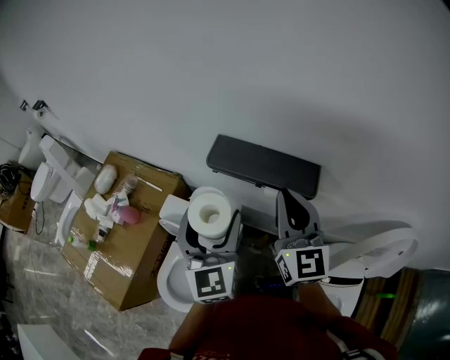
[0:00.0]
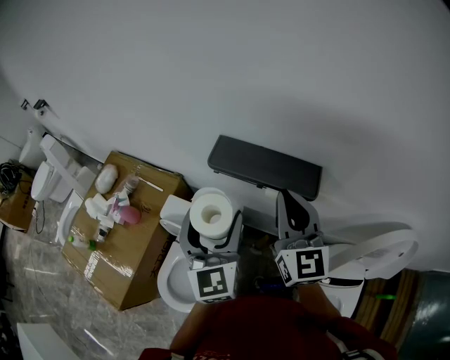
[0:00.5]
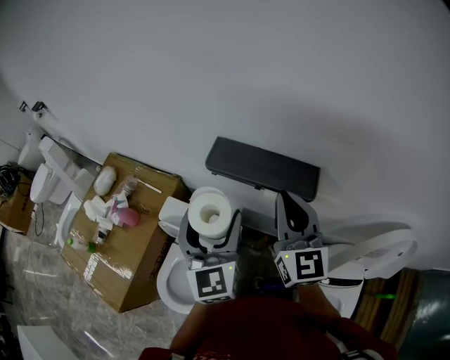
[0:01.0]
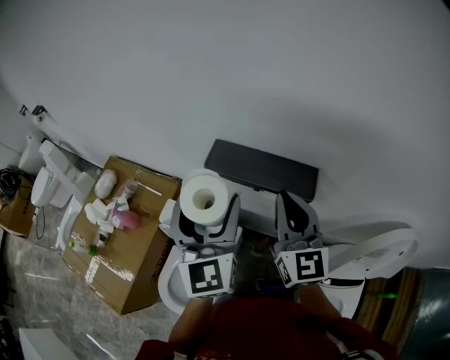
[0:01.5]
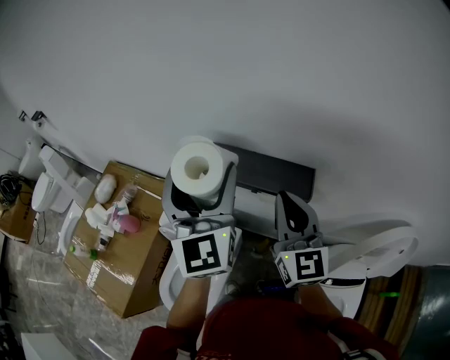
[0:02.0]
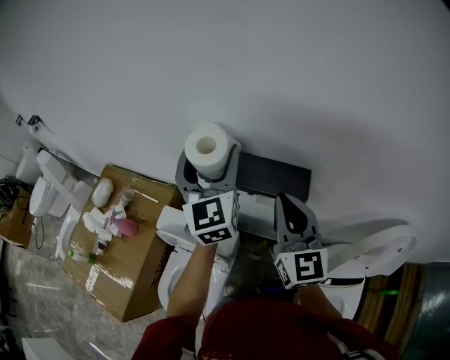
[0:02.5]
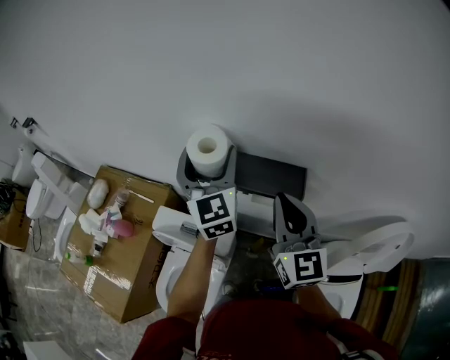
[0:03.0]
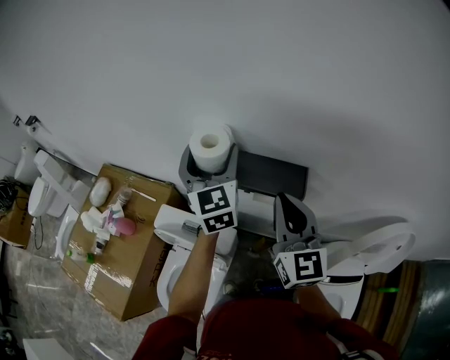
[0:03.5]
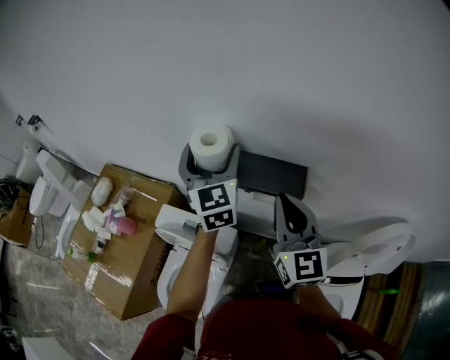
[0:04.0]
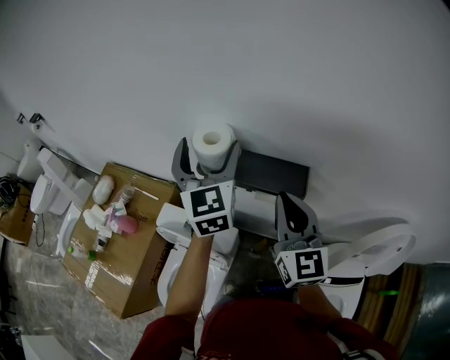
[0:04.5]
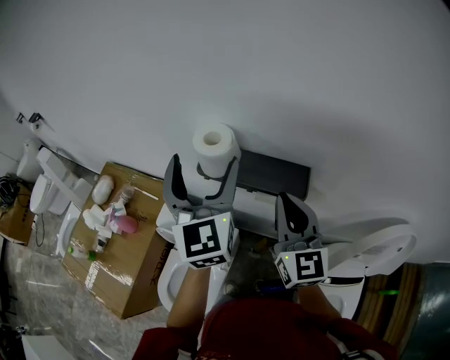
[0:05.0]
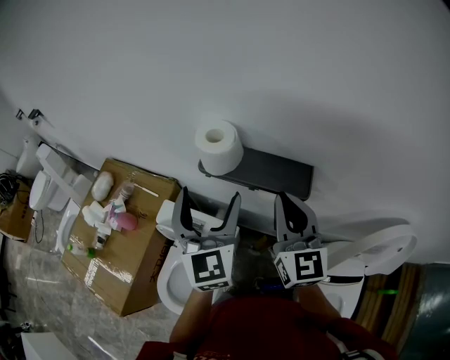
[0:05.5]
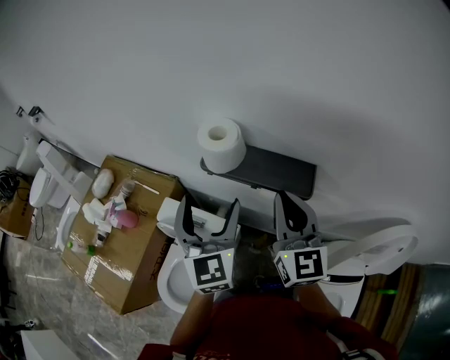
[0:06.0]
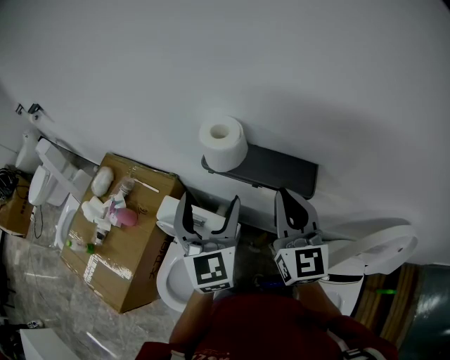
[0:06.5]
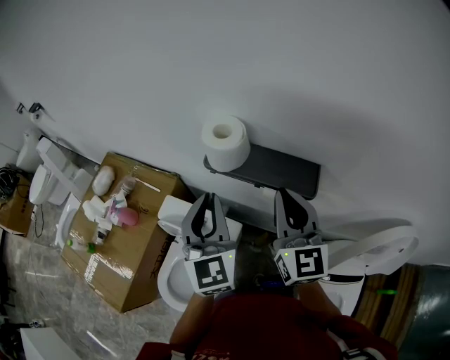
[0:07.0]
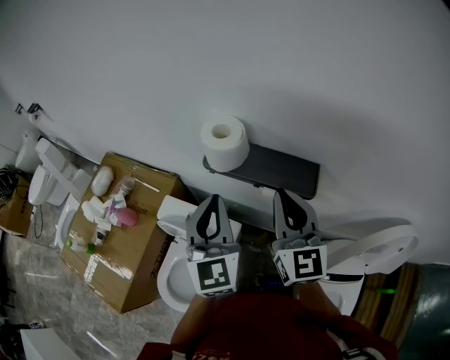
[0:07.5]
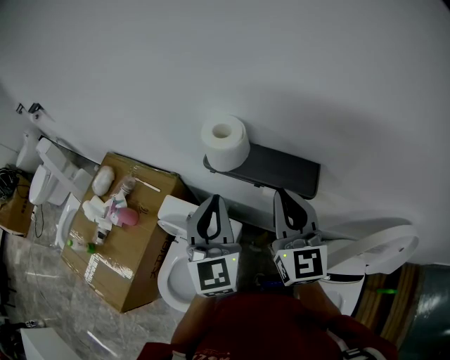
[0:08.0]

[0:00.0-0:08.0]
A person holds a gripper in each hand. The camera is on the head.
0:00.0 to 0:02.0: The left gripper goes approximately 15 cm upward and forward.
0:02.0 to 0:04.0: The left gripper goes roughly 10 cm forward and downward.
0:04.0 to 0:06.0: The left gripper travels backward by some 10 cm.
0:06.0 to 0:08.0: The left gripper closes up.

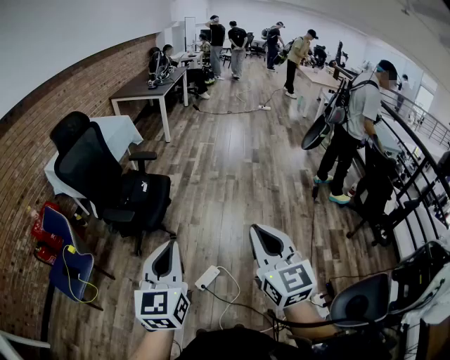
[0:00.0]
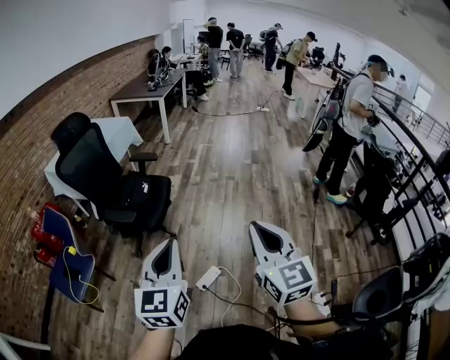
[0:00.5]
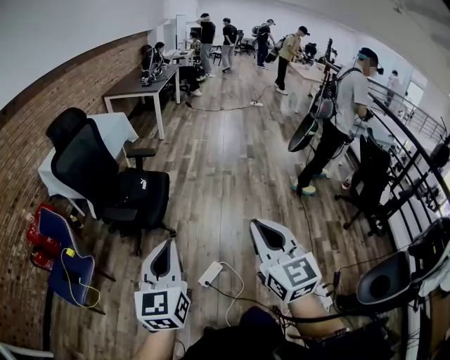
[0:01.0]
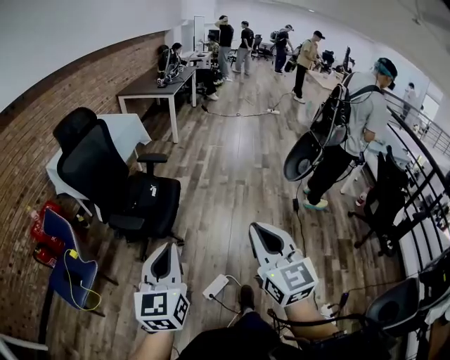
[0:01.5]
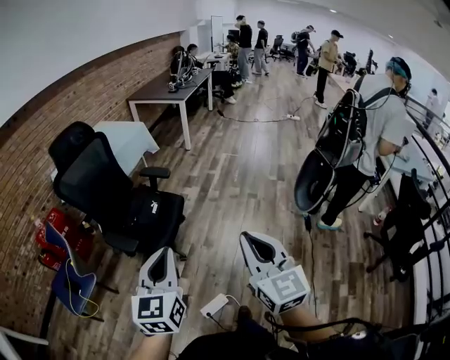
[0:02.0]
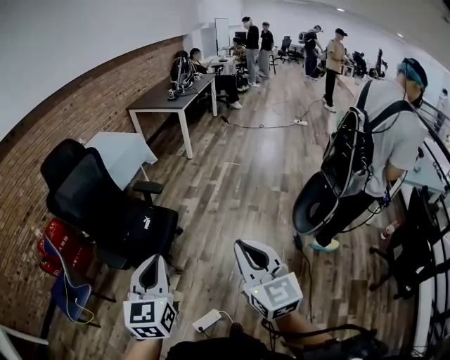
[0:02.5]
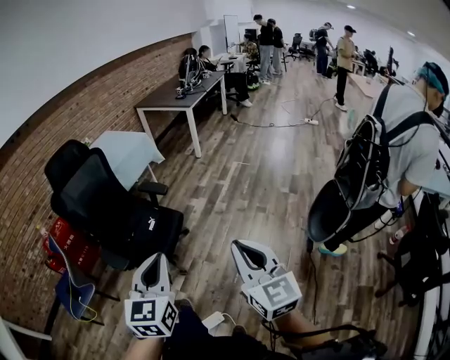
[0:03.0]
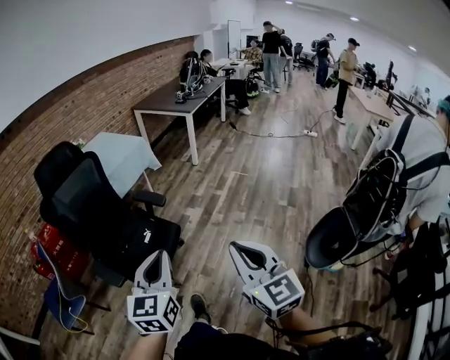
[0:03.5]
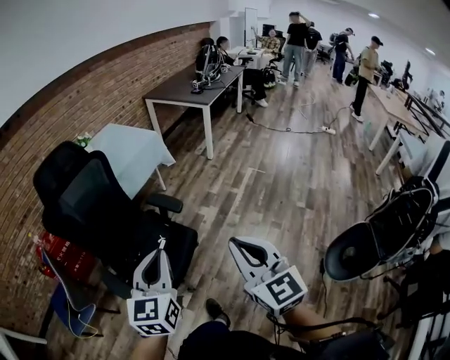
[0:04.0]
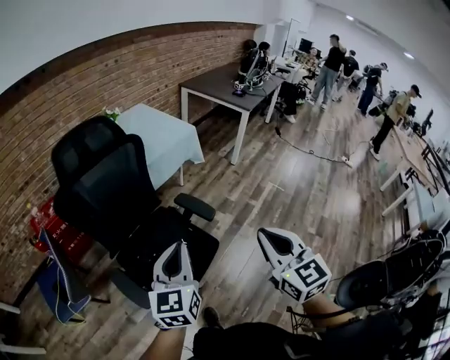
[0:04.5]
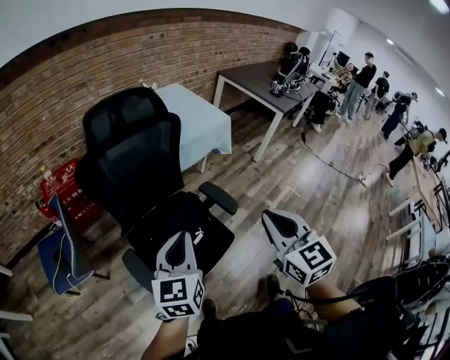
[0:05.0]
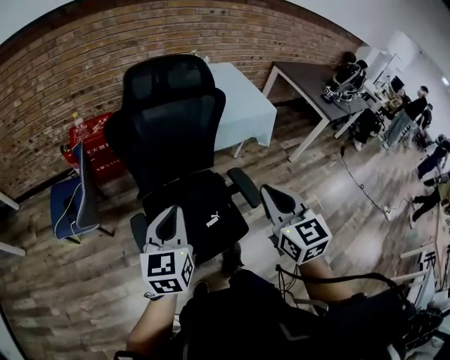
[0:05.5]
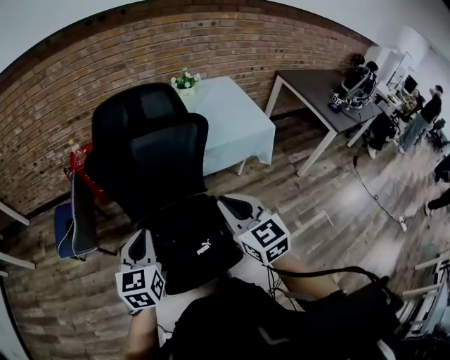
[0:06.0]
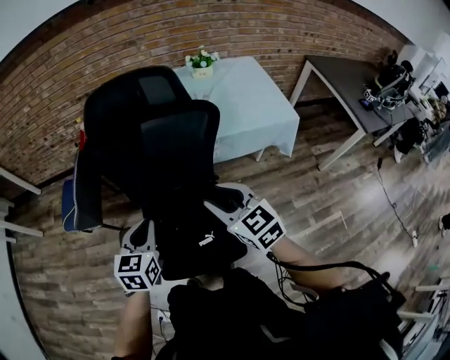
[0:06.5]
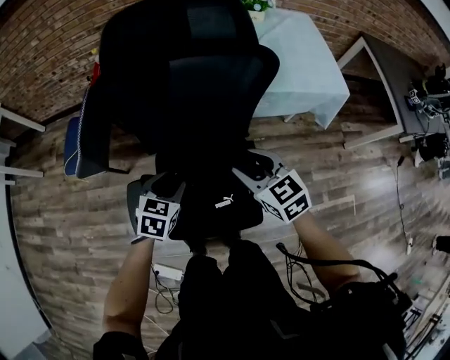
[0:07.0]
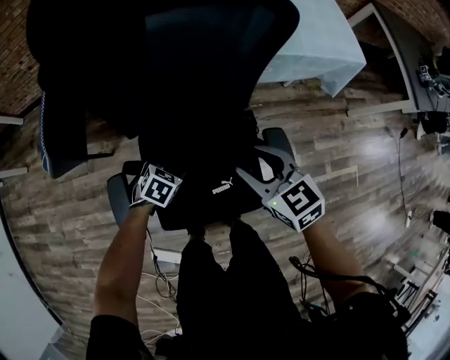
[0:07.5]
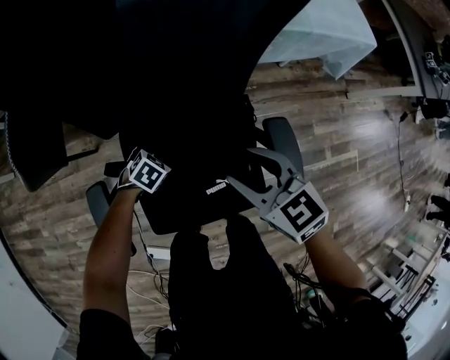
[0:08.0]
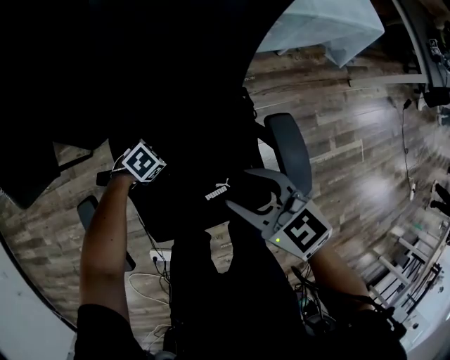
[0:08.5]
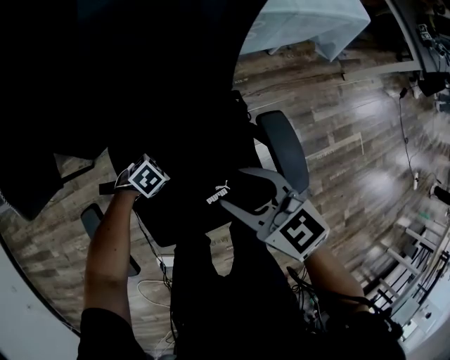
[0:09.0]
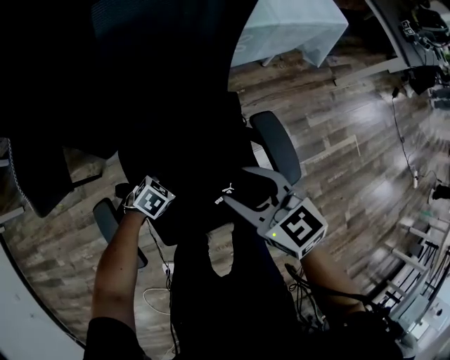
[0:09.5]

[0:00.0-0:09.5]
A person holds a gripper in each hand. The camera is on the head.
0:00.0 to 0:02.0: The two grippers go some 20 cm forward.
0:02.0 to 0:04.0: Both grippers travel together forward, about 35 cm.
0:04.0 to 0:05.5: The right gripper moves about 35 cm, and turns by approximately 30 degrees. The left gripper moves roughly 30 cm, and swivels approximately 40 degrees.
0:05.5 to 0:07.5: The left gripper travels downward by approximately 40 cm, tips its fingers downward by roughly 50 degrees, and opens up. Meanwhile the right gripper is displaced downward and forward by roughly 30 cm, changes its angle by some 40 degrees, and opens up.
0:07.5 to 0:09.5: The left gripper goes roughly 10 cm downward, turns by about 20 degrees, and closes up.

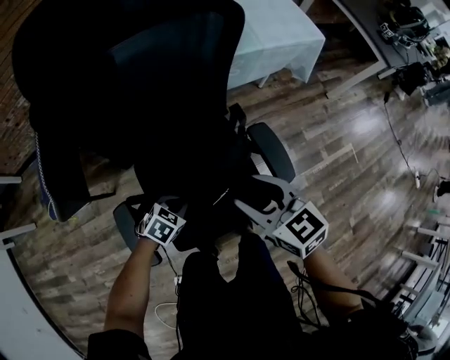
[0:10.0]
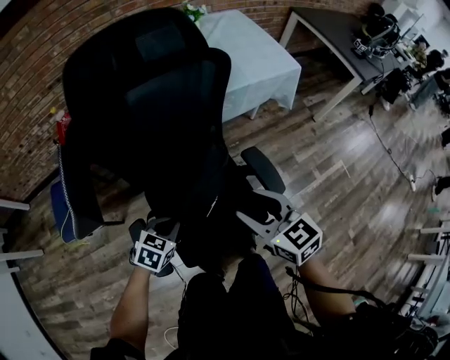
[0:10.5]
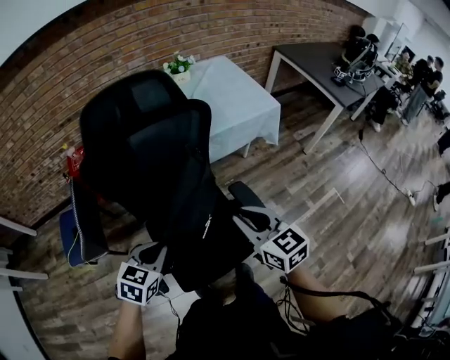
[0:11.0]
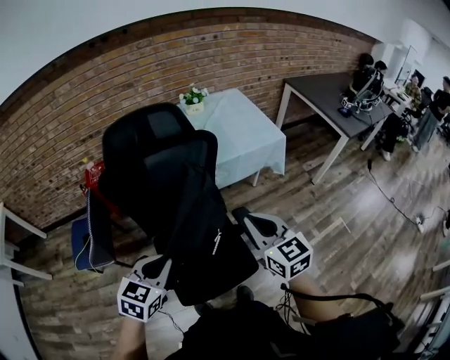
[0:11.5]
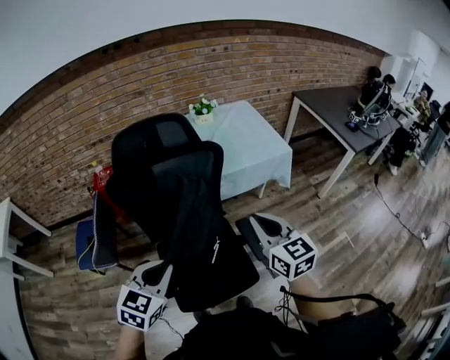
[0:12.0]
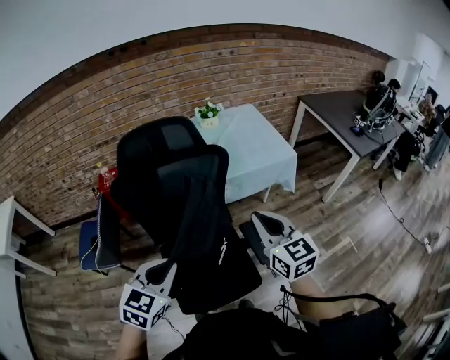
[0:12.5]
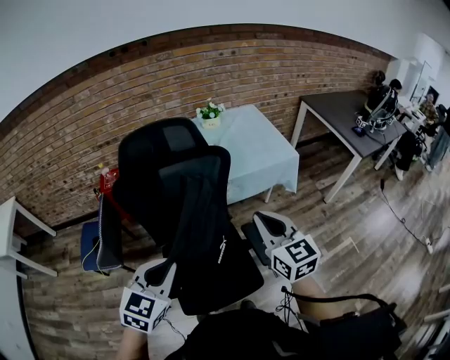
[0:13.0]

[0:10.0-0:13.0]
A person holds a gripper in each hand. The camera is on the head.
0:10.0 to 0:11.5: The right gripper moves upward, approximately 20 cm, turns by some 20 degrees, and closes up; the left gripper travels upward by about 35 cm, and turns by some 30 degrees.
0:11.5 to 0:13.0: The left gripper moves upward, about 5 cm, while the right gripper shifts by some 5 cm.

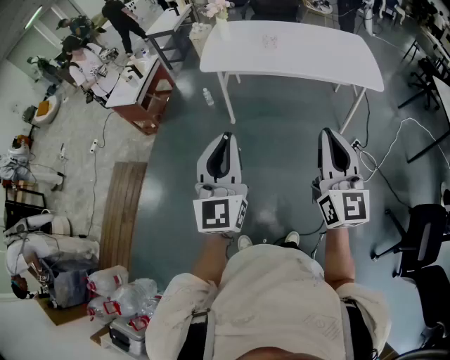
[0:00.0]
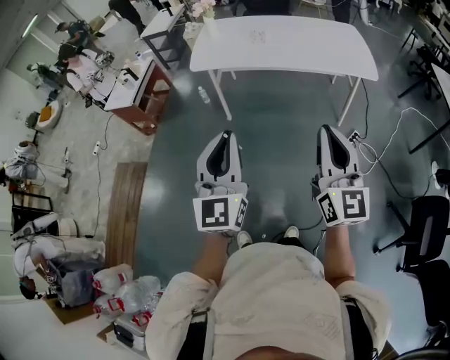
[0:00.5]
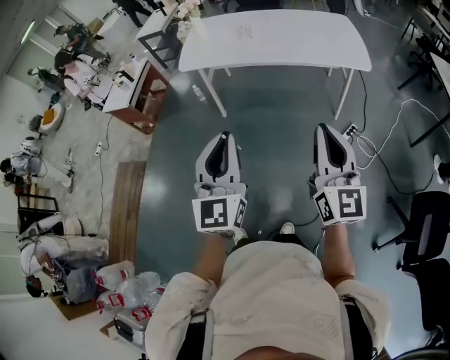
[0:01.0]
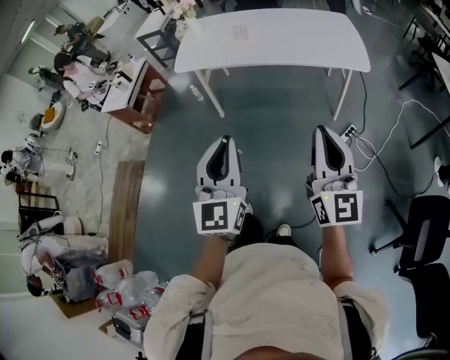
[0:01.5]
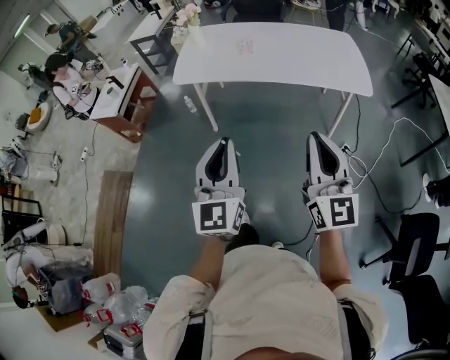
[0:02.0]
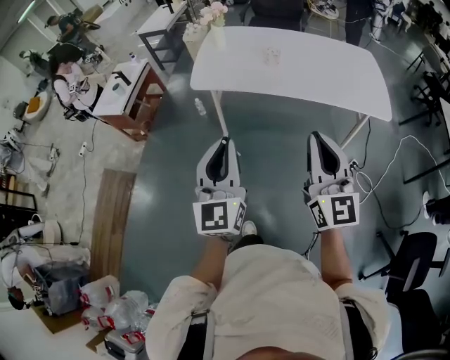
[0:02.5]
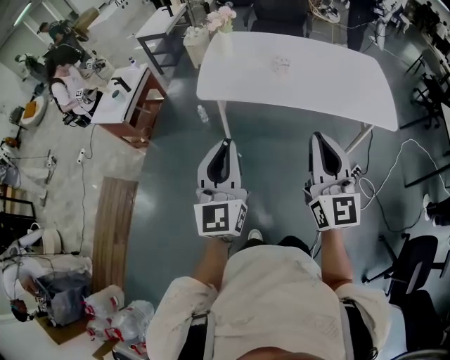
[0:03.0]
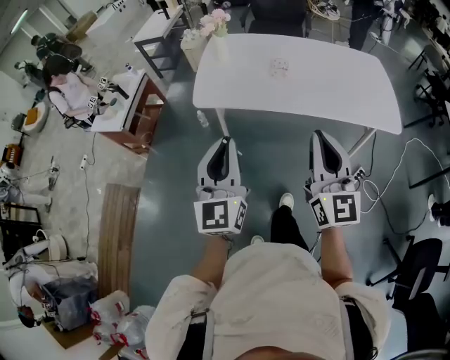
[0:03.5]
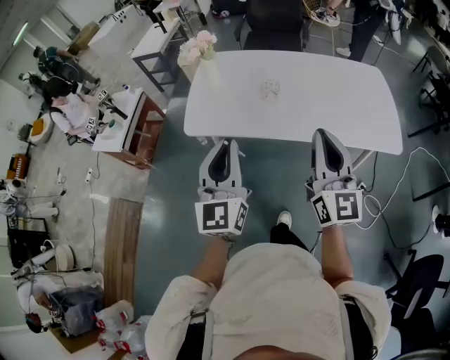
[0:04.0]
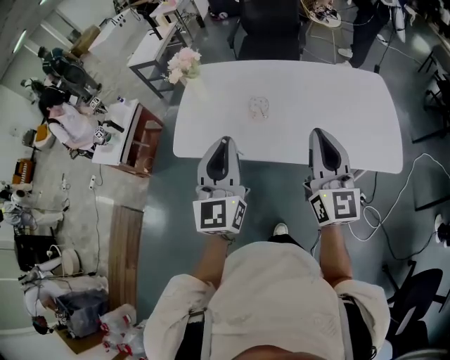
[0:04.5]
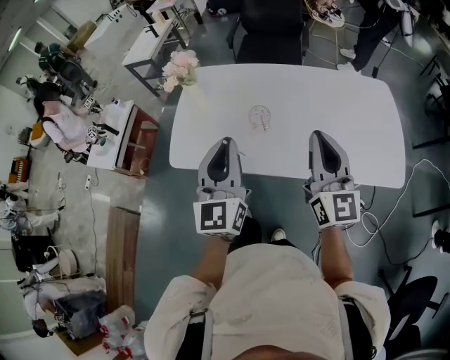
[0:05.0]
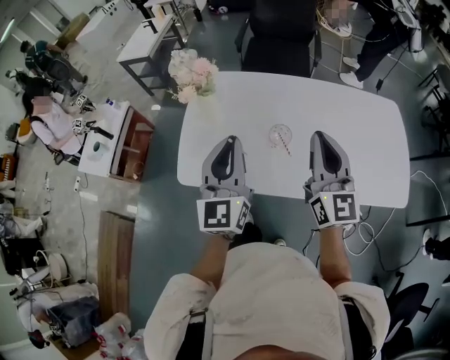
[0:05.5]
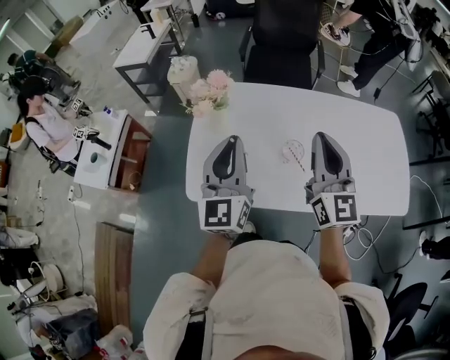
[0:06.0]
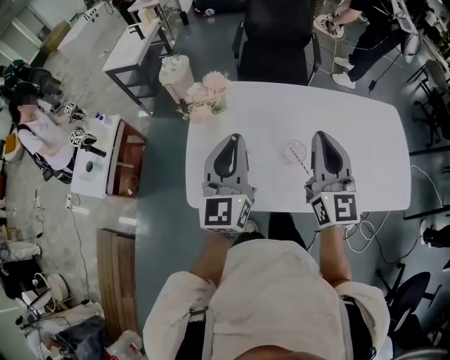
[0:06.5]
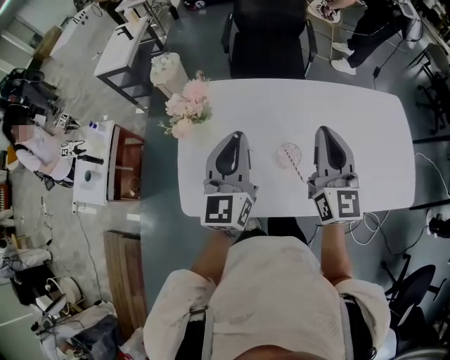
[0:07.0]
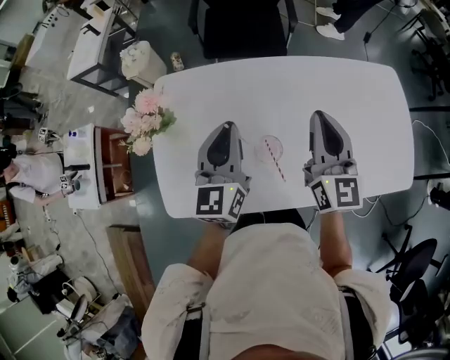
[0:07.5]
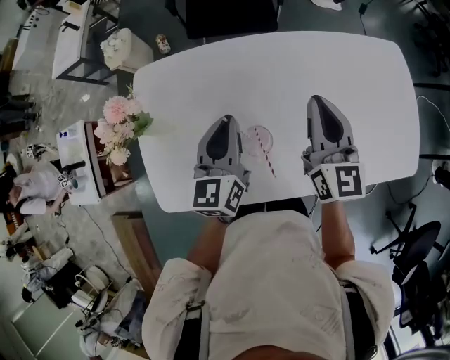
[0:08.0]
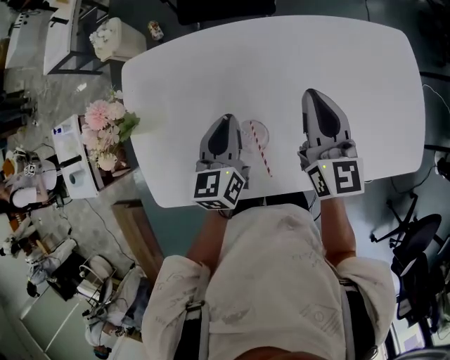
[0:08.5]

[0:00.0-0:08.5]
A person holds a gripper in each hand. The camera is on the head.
0:00.0 to 0:02.0: The two grippers go some 15 cm to the right and forward.
0:02.0 to 0:04.0: The grippers both shift forward by some 35 cm.
0:04.0 to 0:06.5: Both grippers travel together forward, some 40 cm.
0:06.5 to 0:08.5: The left gripper goes approximately 30 cm downward, to the right and forward, and rotates about 30 degrees. Meanwhile the right gripper shifts some 30 cm forward, downward and to the right, and changes its angle by some 20 degrees.
